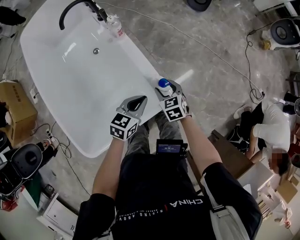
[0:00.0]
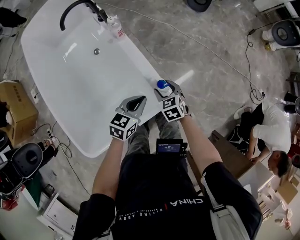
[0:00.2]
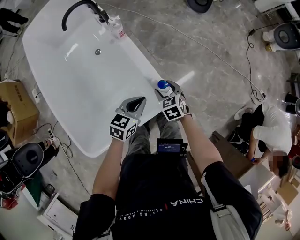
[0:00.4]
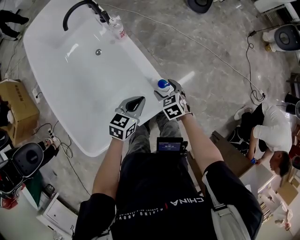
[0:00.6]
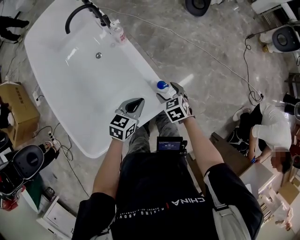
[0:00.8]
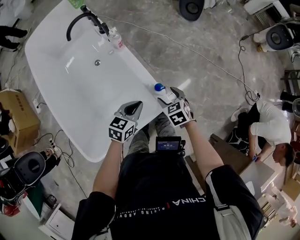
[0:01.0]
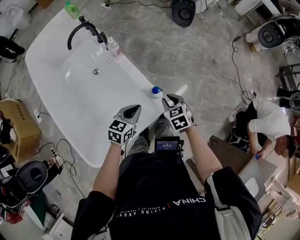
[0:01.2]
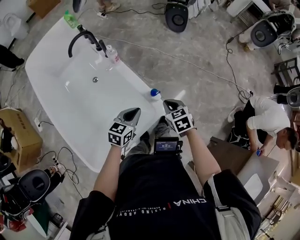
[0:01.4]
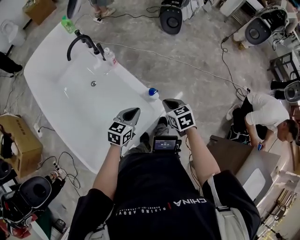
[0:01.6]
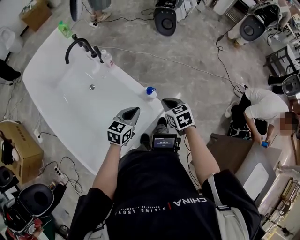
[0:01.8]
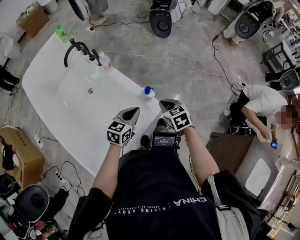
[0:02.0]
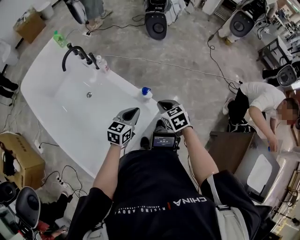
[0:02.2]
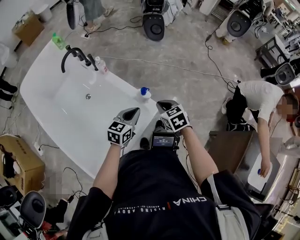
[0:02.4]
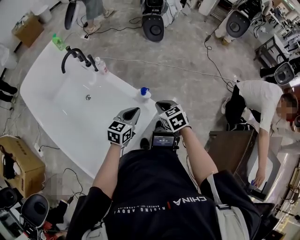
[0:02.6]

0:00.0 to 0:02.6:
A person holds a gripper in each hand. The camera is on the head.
0:00.0 to 0:01.2: The left gripper shifts about 5 cm upward. Meanwhile the right gripper is displaced upward by about 10 cm, and closes up.
0:01.2 to 0:02.6: The left gripper travels upward by some 5 cm, while the right gripper is displaced upward and backward by approximately 10 cm.

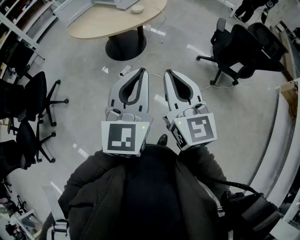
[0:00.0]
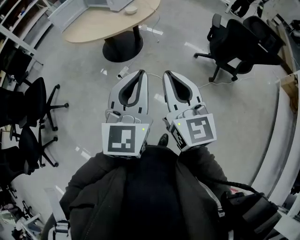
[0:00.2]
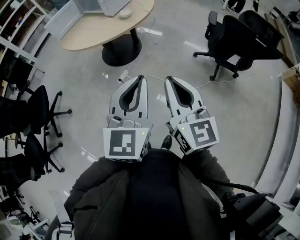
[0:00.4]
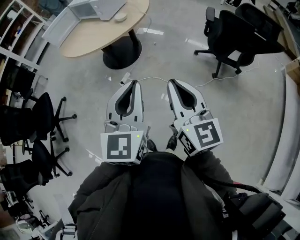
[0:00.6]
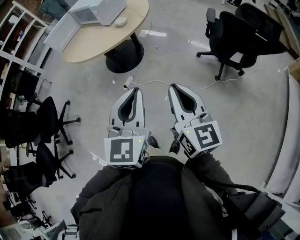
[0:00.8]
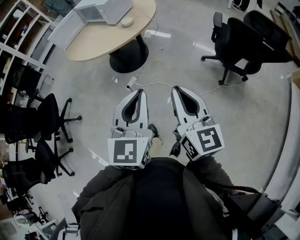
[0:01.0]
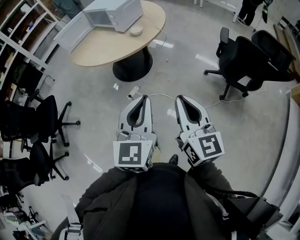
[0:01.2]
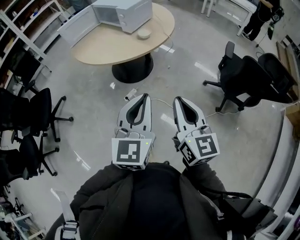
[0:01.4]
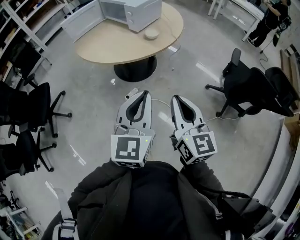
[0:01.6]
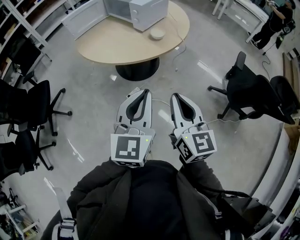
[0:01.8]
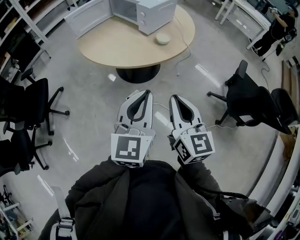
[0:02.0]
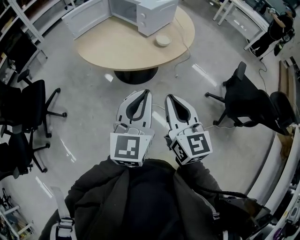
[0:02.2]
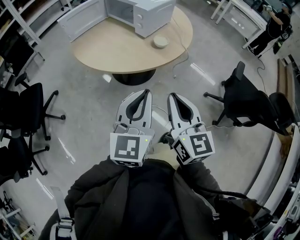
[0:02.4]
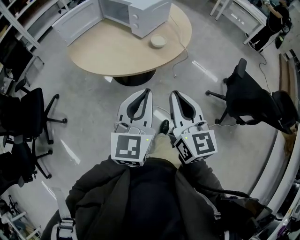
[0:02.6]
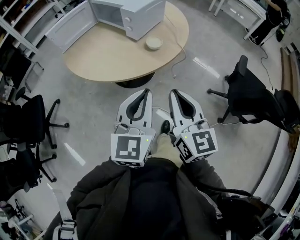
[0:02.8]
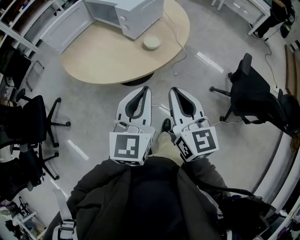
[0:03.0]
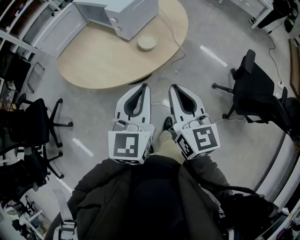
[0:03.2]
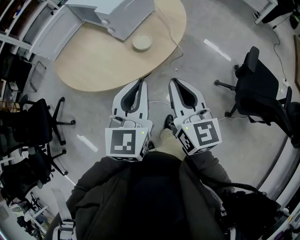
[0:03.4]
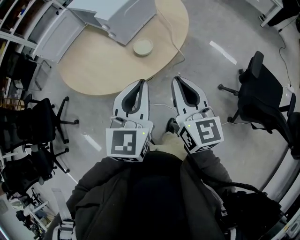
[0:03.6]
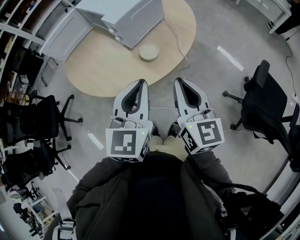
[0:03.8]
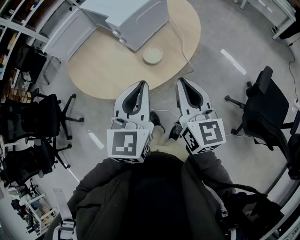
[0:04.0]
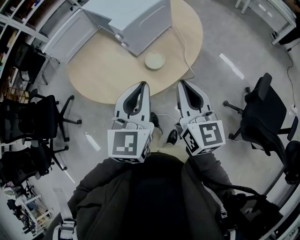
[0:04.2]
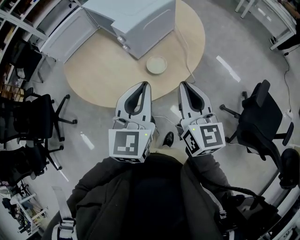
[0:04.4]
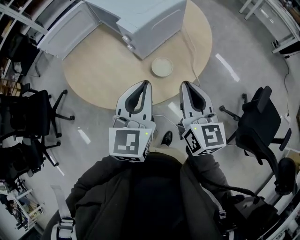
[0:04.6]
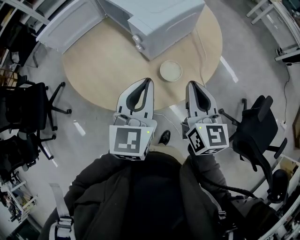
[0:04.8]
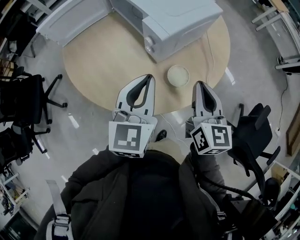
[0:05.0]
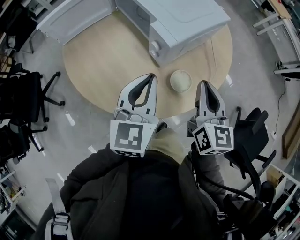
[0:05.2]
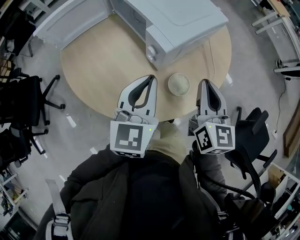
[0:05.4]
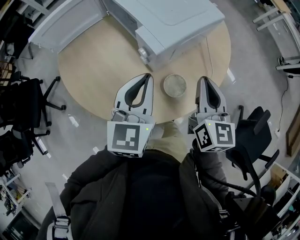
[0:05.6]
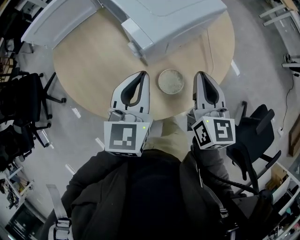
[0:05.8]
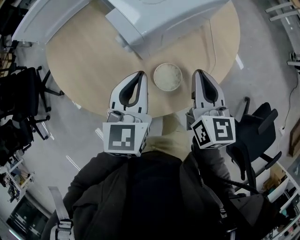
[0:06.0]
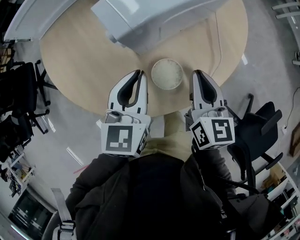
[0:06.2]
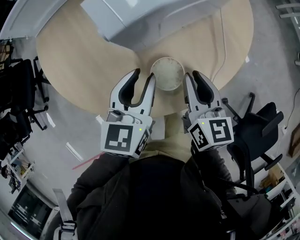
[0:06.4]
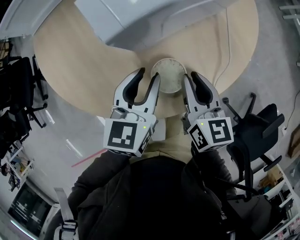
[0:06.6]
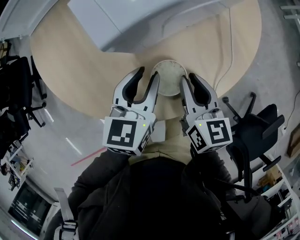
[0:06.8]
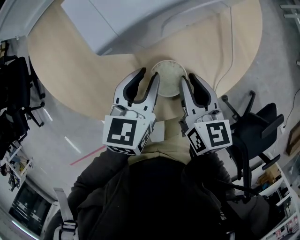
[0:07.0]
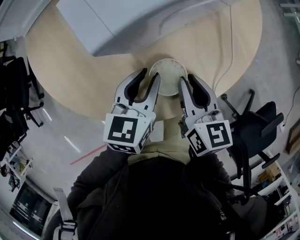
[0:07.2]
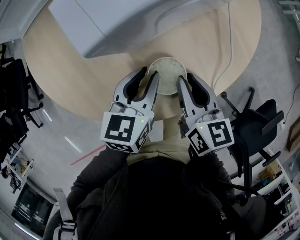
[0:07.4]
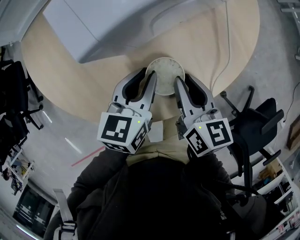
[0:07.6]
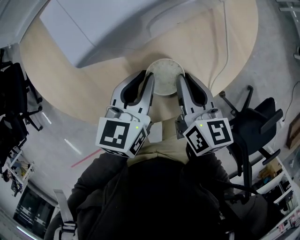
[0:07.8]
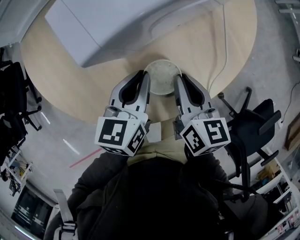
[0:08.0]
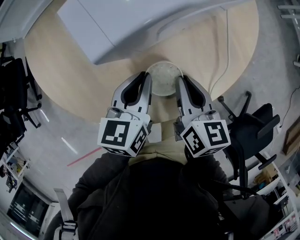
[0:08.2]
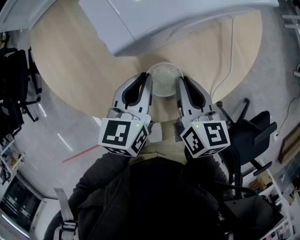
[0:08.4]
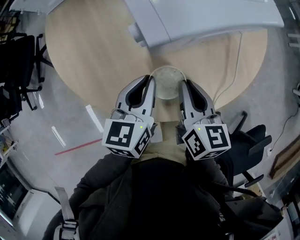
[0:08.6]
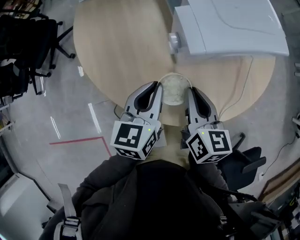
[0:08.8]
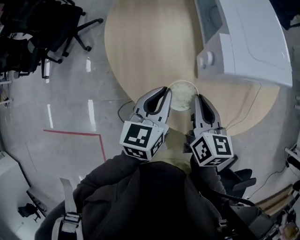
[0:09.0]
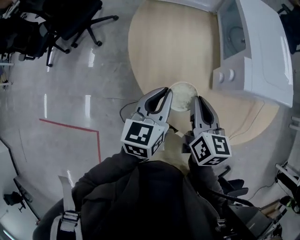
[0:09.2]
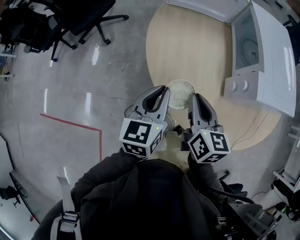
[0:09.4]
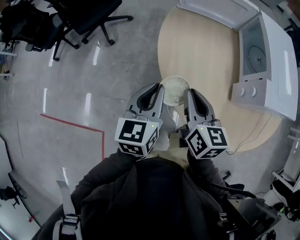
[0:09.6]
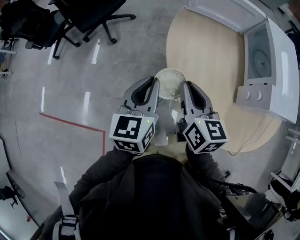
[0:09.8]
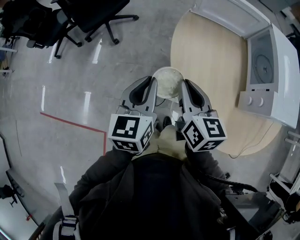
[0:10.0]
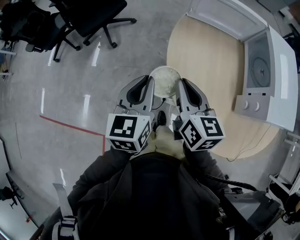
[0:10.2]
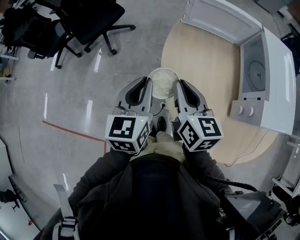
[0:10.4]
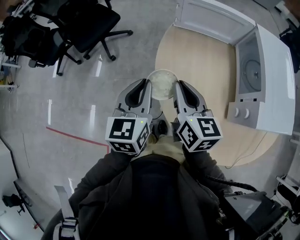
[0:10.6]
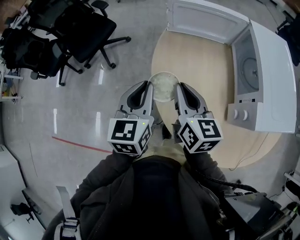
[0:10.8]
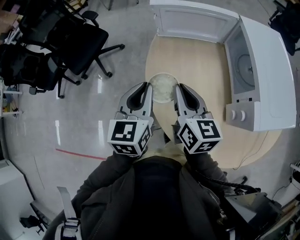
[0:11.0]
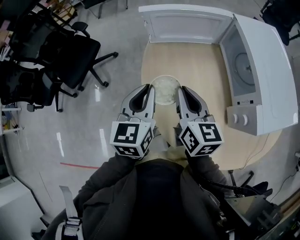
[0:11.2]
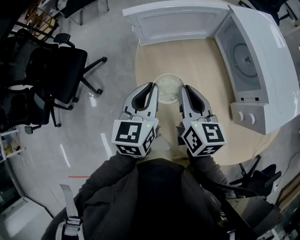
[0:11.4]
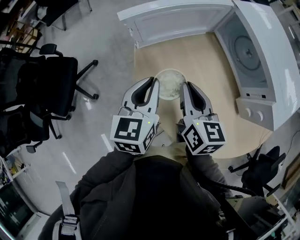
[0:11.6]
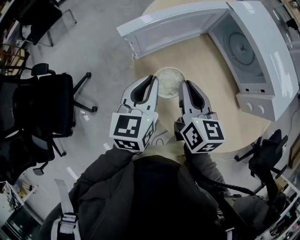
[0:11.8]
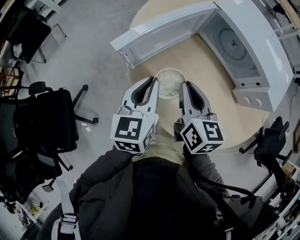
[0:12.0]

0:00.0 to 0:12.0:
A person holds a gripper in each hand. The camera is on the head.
0:00.0 to 0:01.6: Both grippers travel together forward, approximately 20 cm.
0:01.6 to 0:03.0: Both grippers move forward, about 25 cm.
0:03.0 to 0:04.4: Both grippers travel together forward, about 20 cm.
0:04.4 to 0:06.0: The grippers both shift forward and downward by some 20 cm.
0:06.0 to 0:07.6: The two grippers go roughly 10 cm downward. The left gripper rotates some 20 degrees.
0:07.6 to 0:09.0: The right gripper changes place by approximately 15 cm. Meanwhile the left gripper changes place by approximately 15 cm, and rotates about 30 degrees.
0:09.0 to 0:10.4: The left gripper travels to the left by roughly 30 cm, and swivels some 20 degrees. The right gripper moves to the left and forward, approximately 35 cm, and rotates about 20 degrees.
0:10.4 to 0:12.0: The left gripper ends up approximately 30 cm from where it was, and swivels about 50 degrees. Meanwhile the right gripper changes place by approximately 25 cm, and turns by approximately 50 degrees.

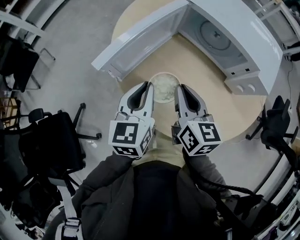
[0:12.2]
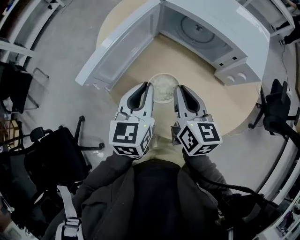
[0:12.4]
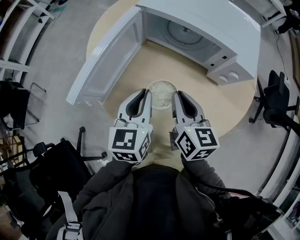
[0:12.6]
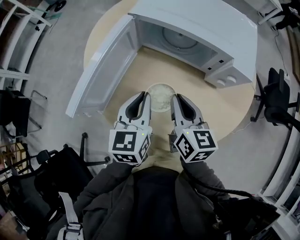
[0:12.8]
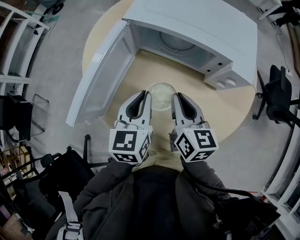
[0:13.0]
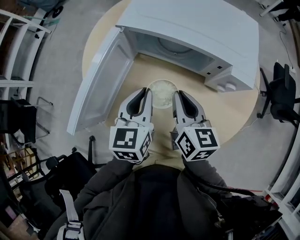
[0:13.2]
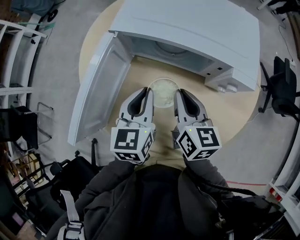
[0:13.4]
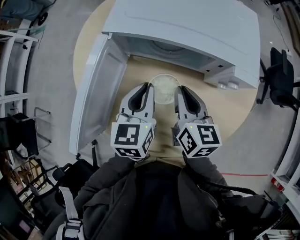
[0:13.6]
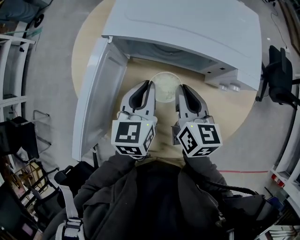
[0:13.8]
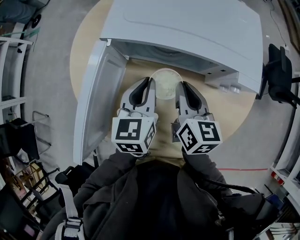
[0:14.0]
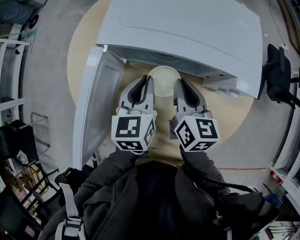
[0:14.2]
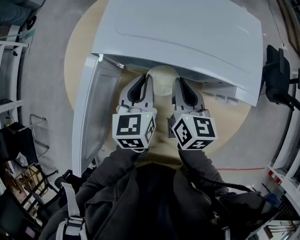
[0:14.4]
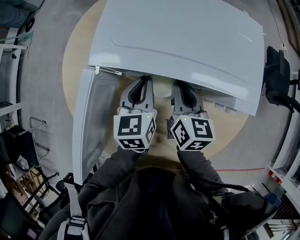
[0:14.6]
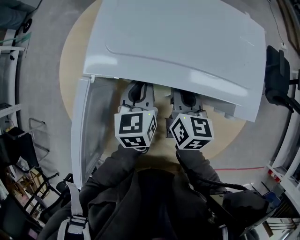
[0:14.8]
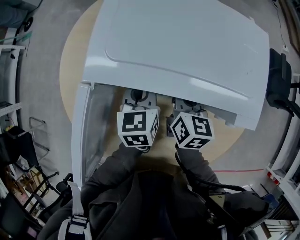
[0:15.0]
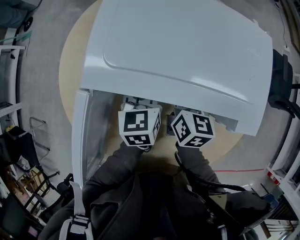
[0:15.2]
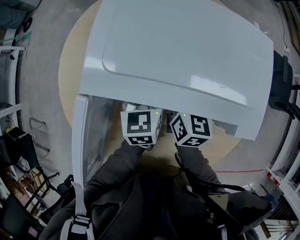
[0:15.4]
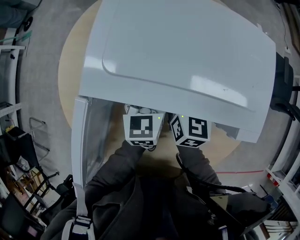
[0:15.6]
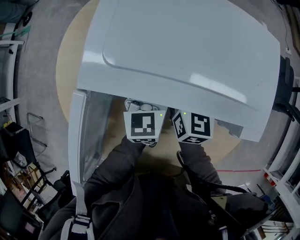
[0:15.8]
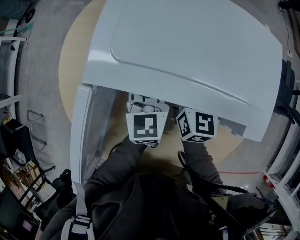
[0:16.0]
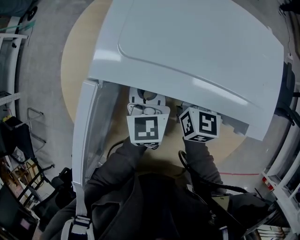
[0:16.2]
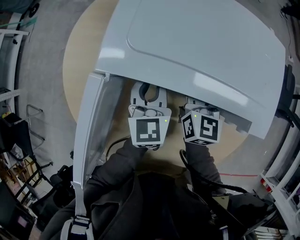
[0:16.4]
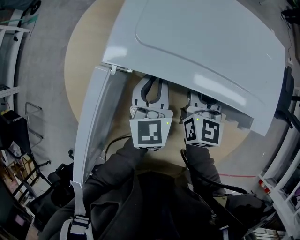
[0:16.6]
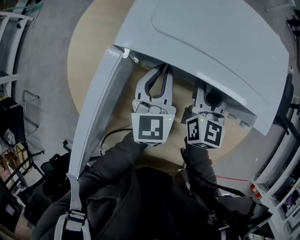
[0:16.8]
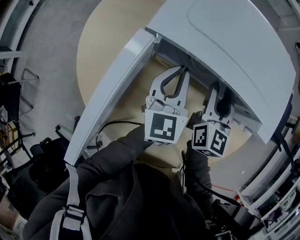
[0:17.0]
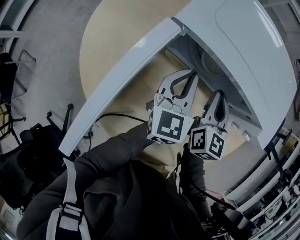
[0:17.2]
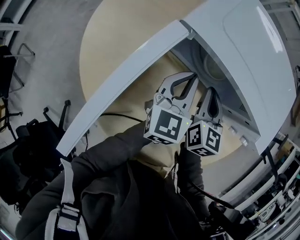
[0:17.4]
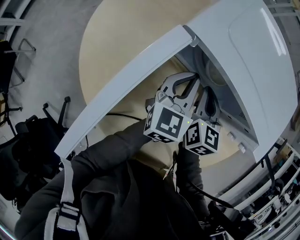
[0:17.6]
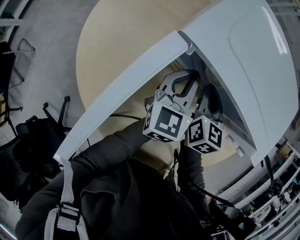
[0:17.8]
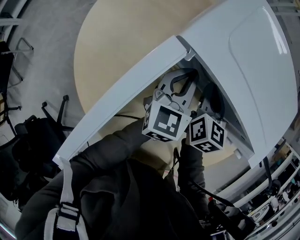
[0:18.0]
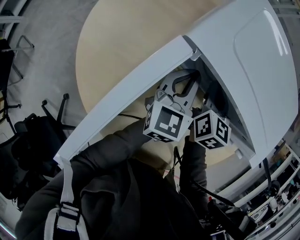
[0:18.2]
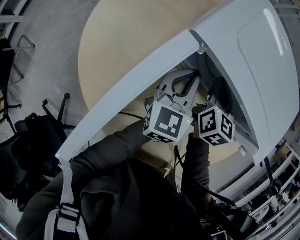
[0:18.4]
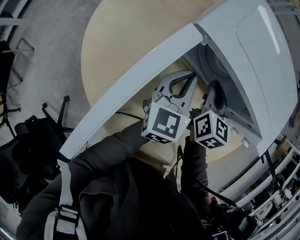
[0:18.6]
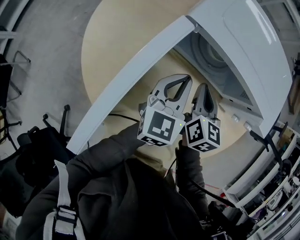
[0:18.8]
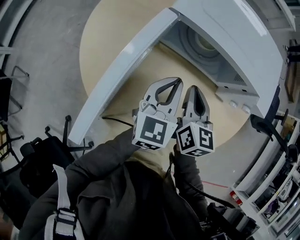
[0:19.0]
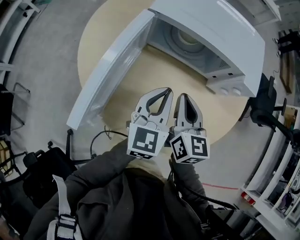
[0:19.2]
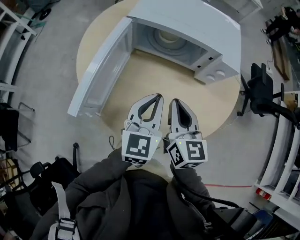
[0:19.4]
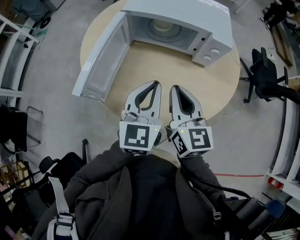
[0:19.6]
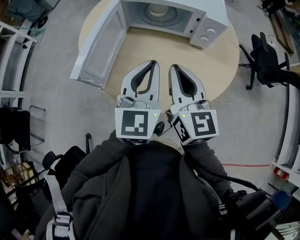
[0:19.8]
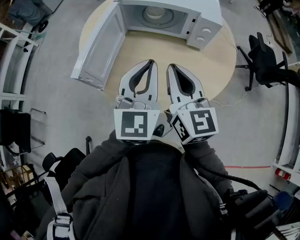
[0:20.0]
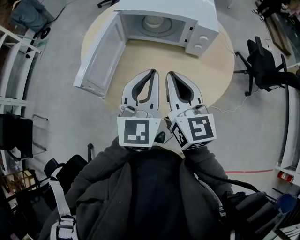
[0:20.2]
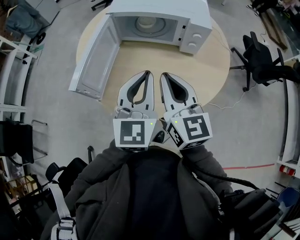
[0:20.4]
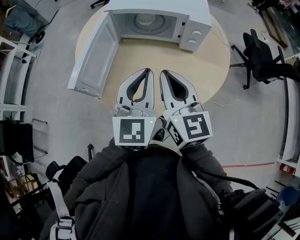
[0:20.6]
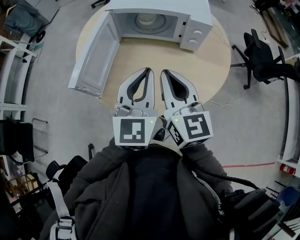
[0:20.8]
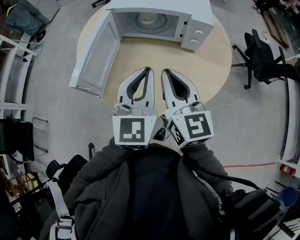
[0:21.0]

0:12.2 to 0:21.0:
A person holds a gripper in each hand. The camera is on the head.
0:12.2 to 0:13.6: The left gripper is displaced forward and to the right by approximately 20 cm, and swivels roughly 20 degrees, while the right gripper goes about 15 cm to the right and forward, and swivels some 30 degrees.
0:13.6 to 0:15.2: The two grippers go approximately 15 cm forward.
0:15.2 to 0:16.6: The right gripper rotates some 20 degrees, and opens up. Meanwhile the left gripper changes place by some 5 cm.
0:16.6 to 0:18.0: The right gripper heads downward, covering roughly 5 cm, and closes.
0:18.0 to 0:19.6: Both grippers travel together backward and upward, approximately 35 cm. The right gripper swivels some 20 degrees.
0:19.6 to 0:21.0: The left gripper heads upward, covering roughly 5 cm. Meanwhile the right gripper changes place by about 5 cm.
